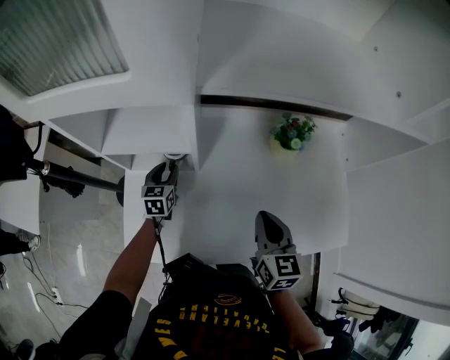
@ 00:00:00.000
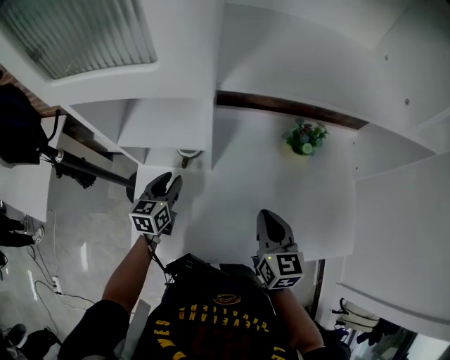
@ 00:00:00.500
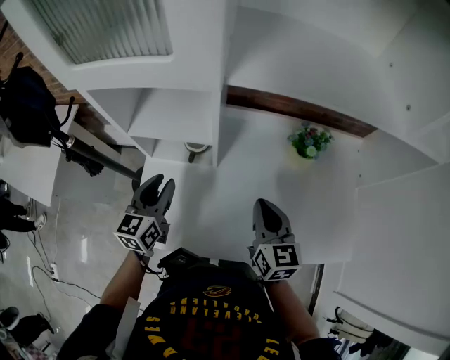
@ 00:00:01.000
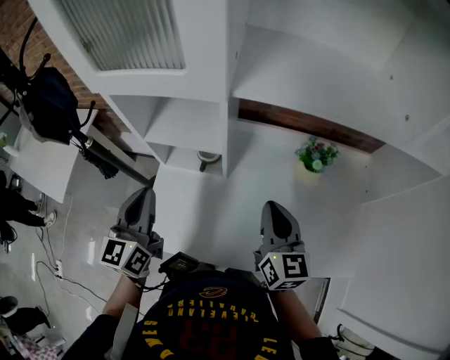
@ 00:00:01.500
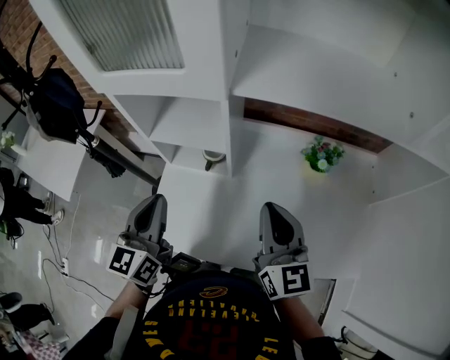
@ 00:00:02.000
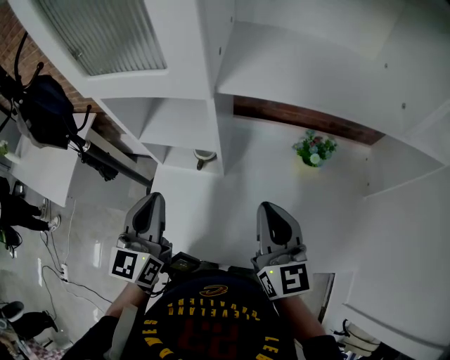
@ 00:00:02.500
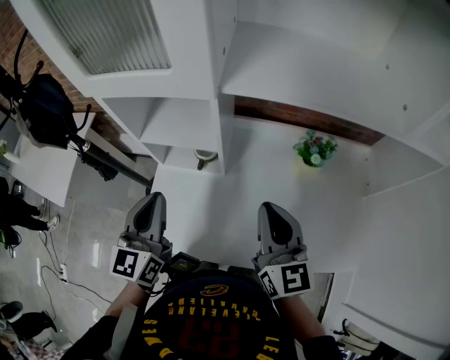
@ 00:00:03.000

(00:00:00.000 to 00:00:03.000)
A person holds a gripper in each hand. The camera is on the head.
00:00:00.000 - 00:00:01.500: The right gripper goes roughly 10 cm upward. Meanwhile the left gripper shifts some 35 cm upward and backward, rotates roughly 30 degrees, and closes.
00:00:01.500 - 00:00:03.000: The right gripper changes place by approximately 5 cm.

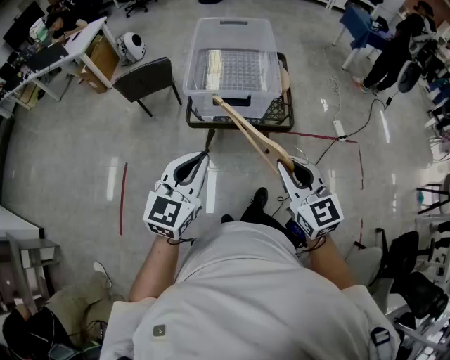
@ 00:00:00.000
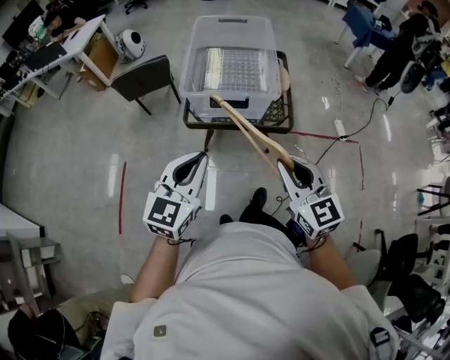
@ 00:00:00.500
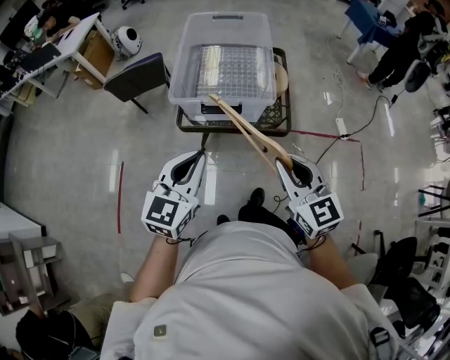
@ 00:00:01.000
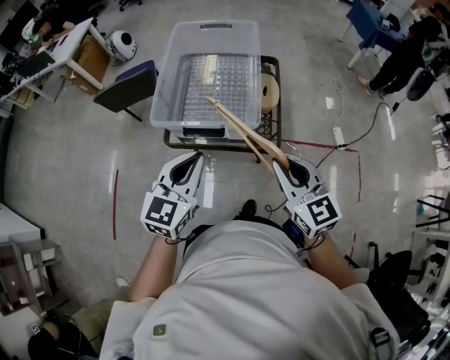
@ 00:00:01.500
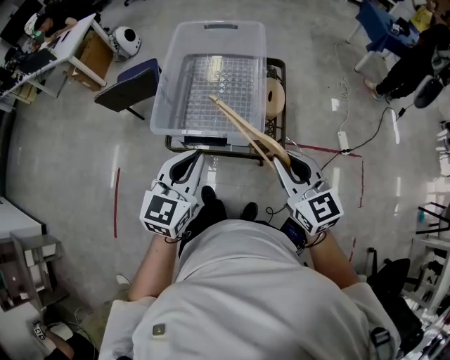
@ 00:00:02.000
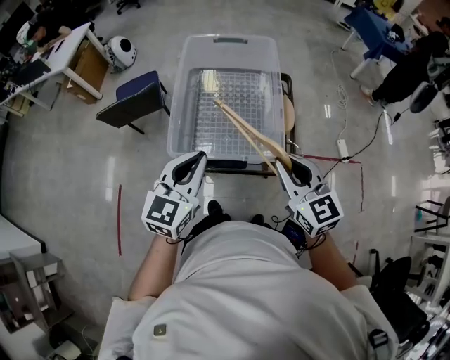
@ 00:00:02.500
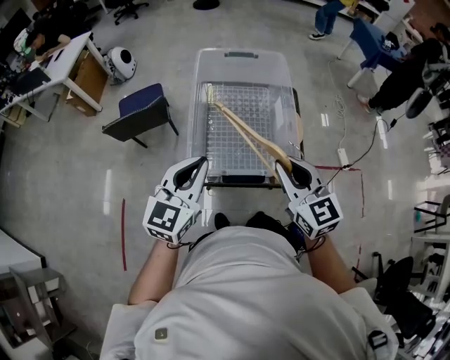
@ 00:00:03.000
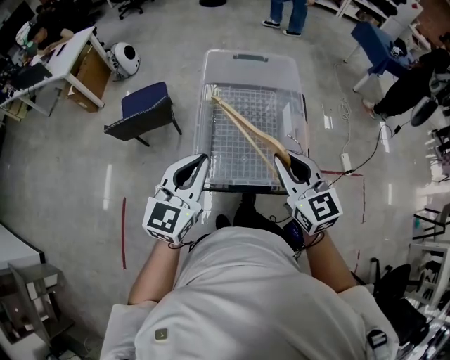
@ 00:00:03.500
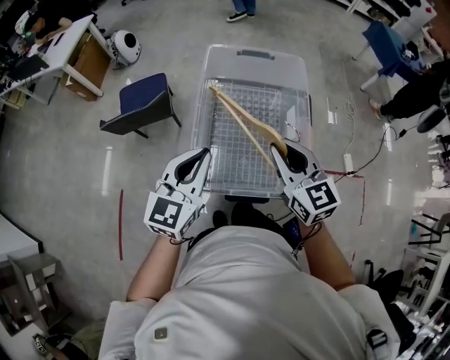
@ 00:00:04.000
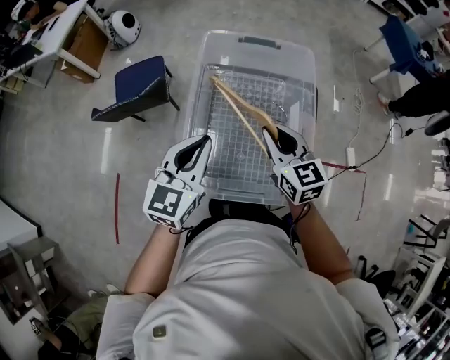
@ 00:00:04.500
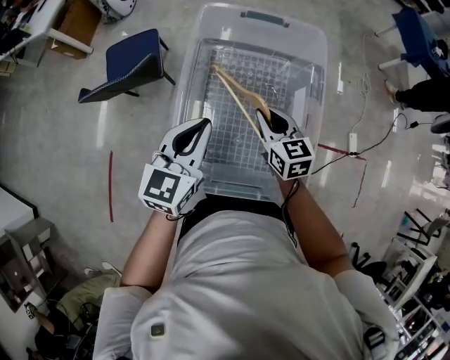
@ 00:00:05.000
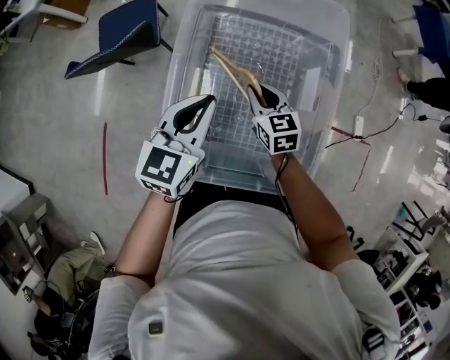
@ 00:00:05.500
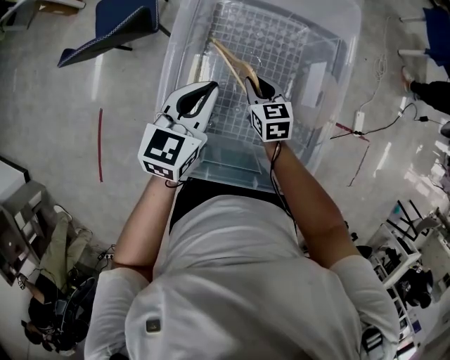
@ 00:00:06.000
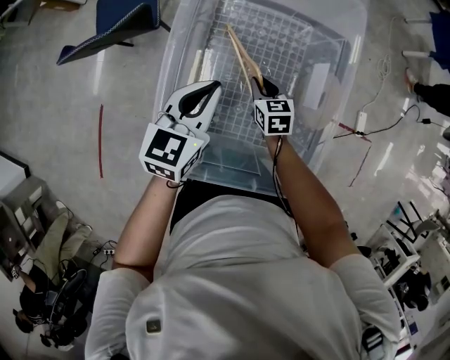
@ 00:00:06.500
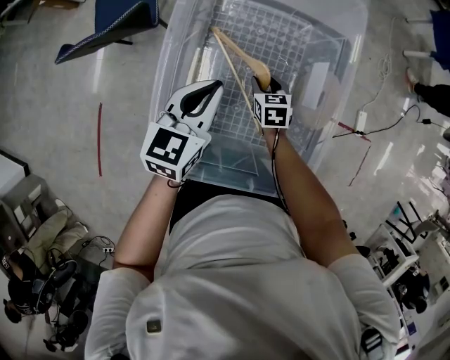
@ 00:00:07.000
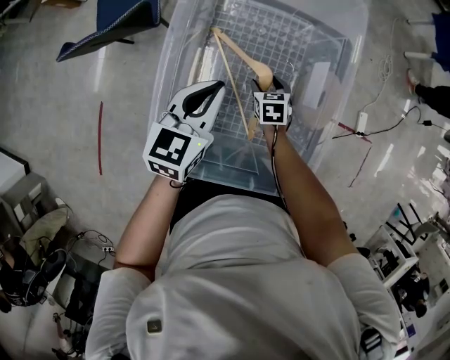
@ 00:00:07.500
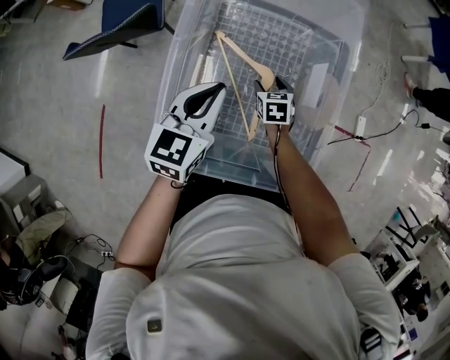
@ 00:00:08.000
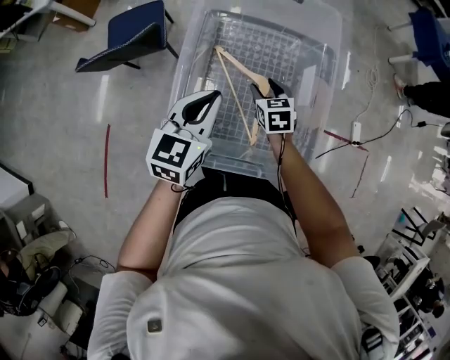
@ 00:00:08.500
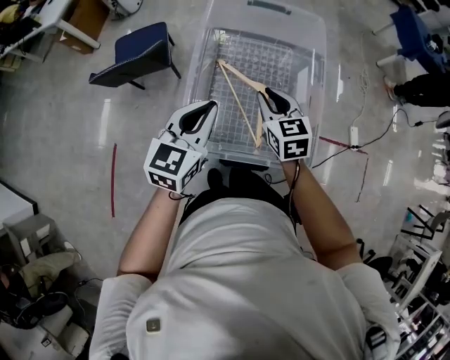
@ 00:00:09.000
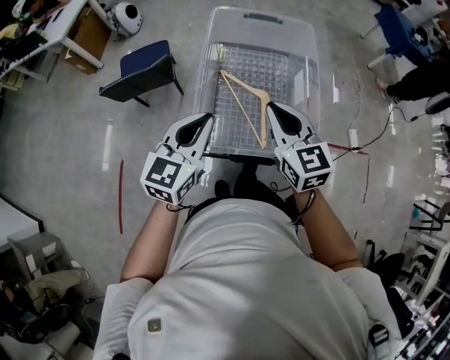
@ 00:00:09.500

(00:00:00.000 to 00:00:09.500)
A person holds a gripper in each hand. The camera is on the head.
00:00:00.000 - 00:00:02.000: The grippers both shift forward and to the right by about 30 cm.
00:00:02.000 - 00:00:04.000: The grippers both shift forward and to the left by approximately 30 cm.
00:00:04.000 - 00:00:05.500: The left gripper heads downward and forward, covering roughly 20 cm. Meanwhile the right gripper goes about 35 cm downward and forward, and changes its angle by approximately 20 degrees.
00:00:05.500 - 00:00:07.500: The right gripper goes approximately 15 cm downward, changes its angle by approximately 20 degrees, and opens, while the left gripper heads downward, covering roughly 5 cm.
00:00:07.500 - 00:00:09.500: The right gripper travels upward and backward by approximately 50 cm, tips its fingers upward by about 40 degrees, and closes; the left gripper heads backward, upward and to the left, covering some 25 cm.

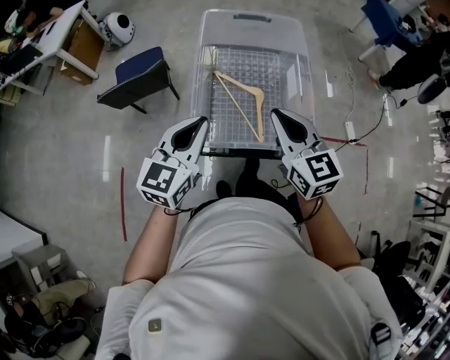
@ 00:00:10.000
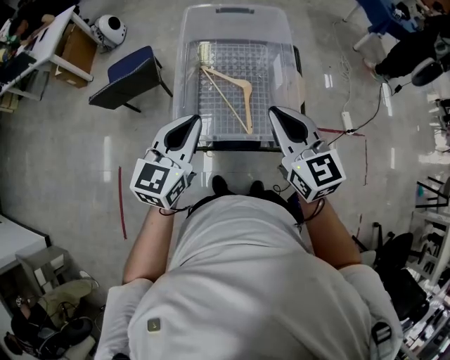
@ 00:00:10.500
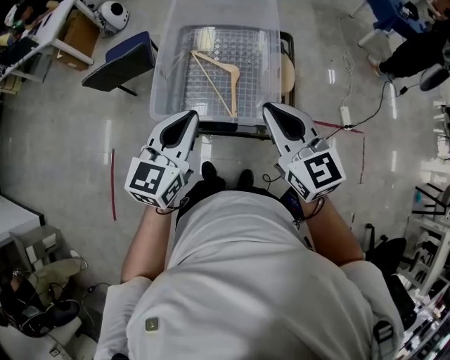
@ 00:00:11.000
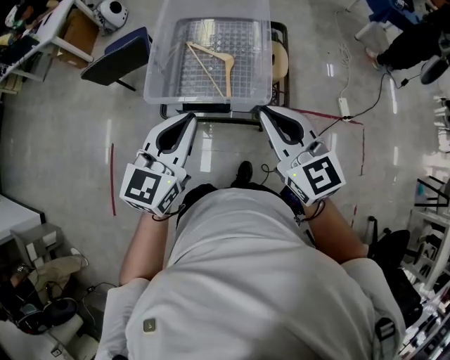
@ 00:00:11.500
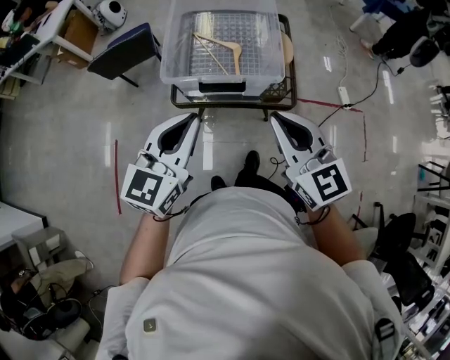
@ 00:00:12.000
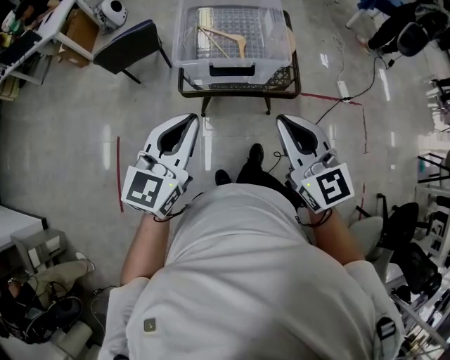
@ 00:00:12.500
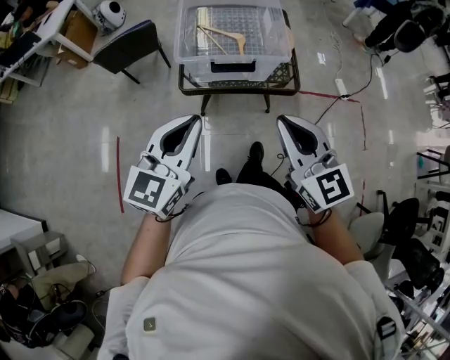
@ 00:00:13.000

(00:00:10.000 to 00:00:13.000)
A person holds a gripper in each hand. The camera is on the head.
00:00:10.000 - 00:00:11.500: The right gripper shifts roughly 20 cm backward and to the right. Meanwhile the left gripper shifts some 20 cm to the right and backward.
00:00:11.500 - 00:00:13.000: The two grippers go some 20 cm backward and to the left.

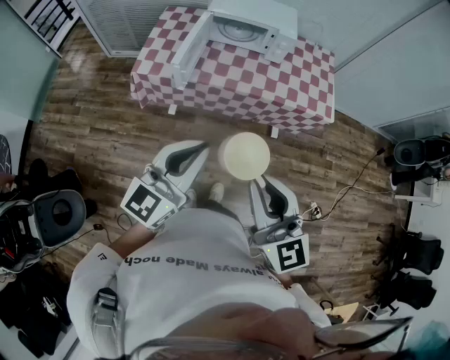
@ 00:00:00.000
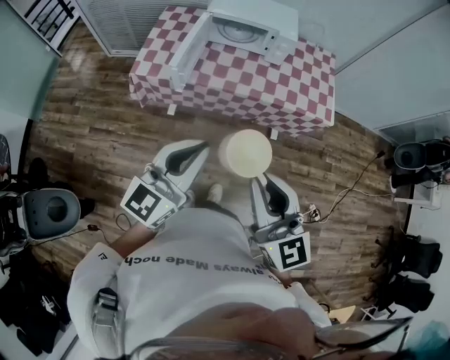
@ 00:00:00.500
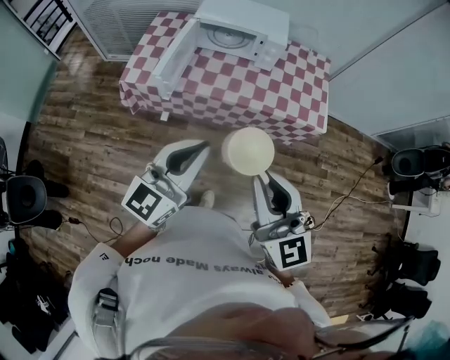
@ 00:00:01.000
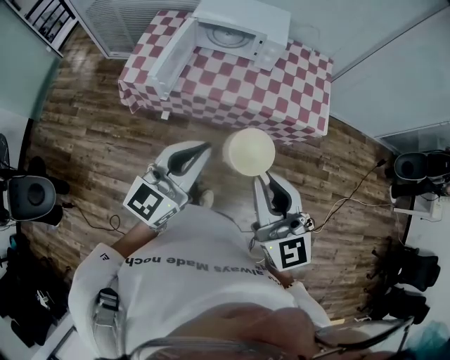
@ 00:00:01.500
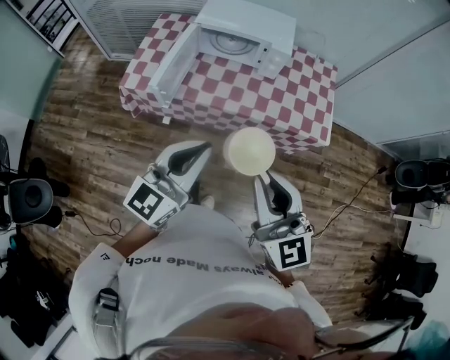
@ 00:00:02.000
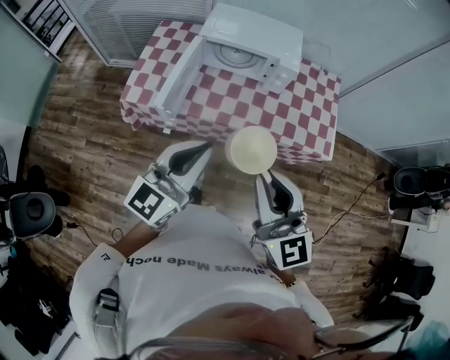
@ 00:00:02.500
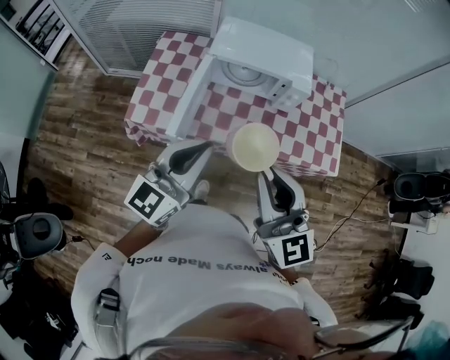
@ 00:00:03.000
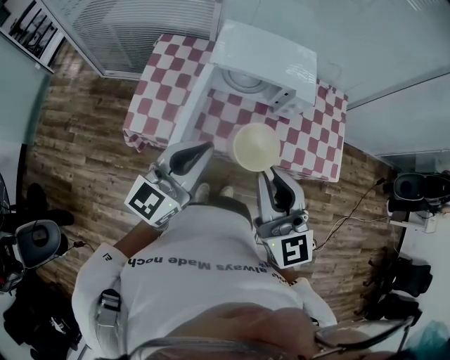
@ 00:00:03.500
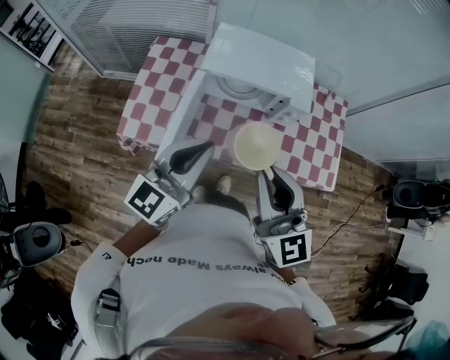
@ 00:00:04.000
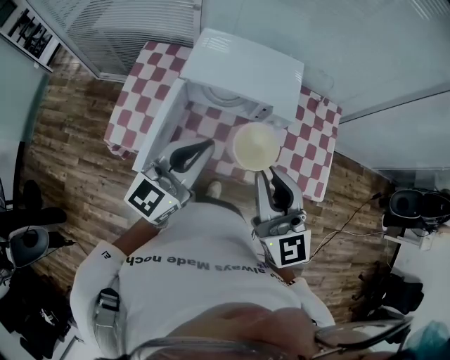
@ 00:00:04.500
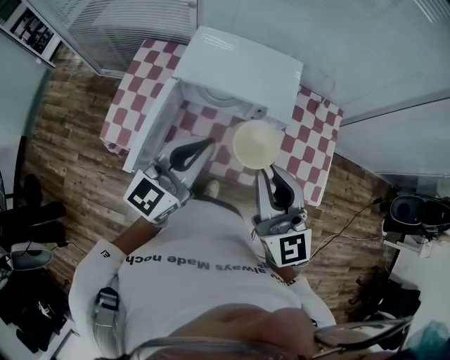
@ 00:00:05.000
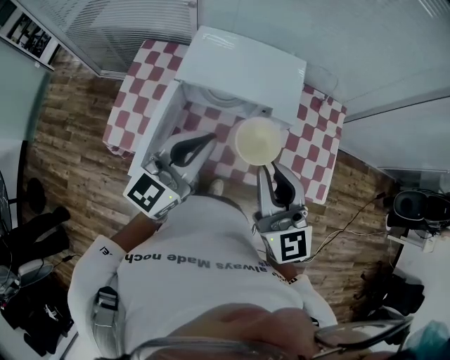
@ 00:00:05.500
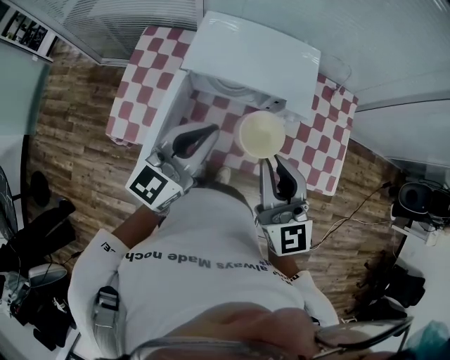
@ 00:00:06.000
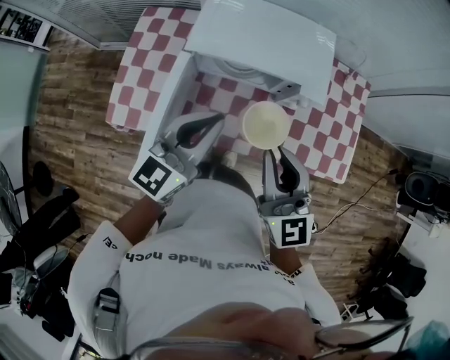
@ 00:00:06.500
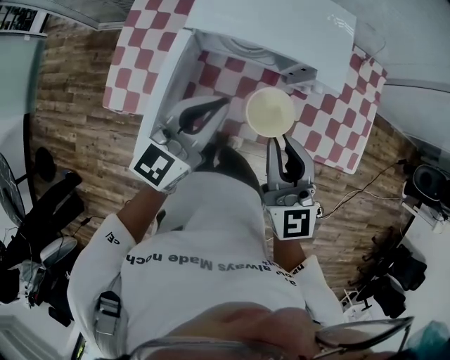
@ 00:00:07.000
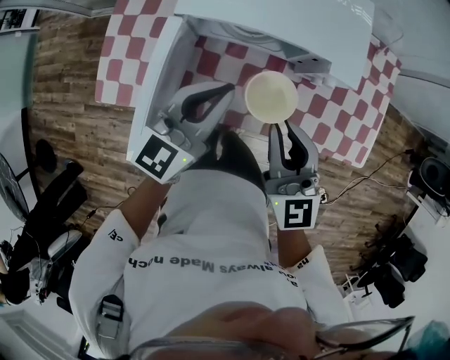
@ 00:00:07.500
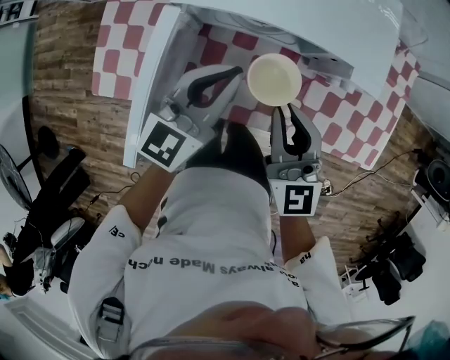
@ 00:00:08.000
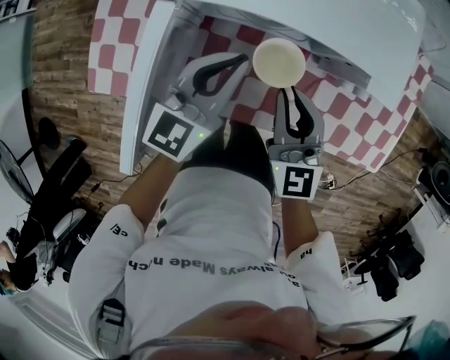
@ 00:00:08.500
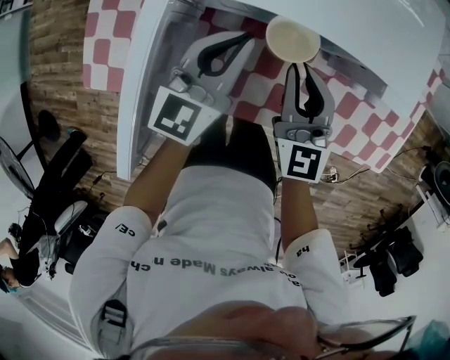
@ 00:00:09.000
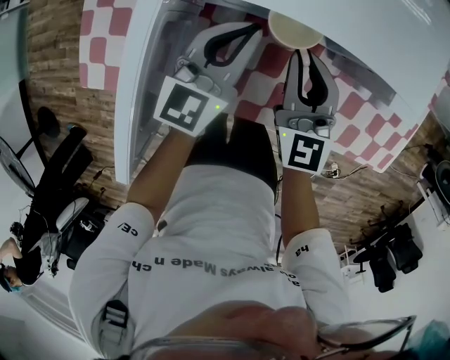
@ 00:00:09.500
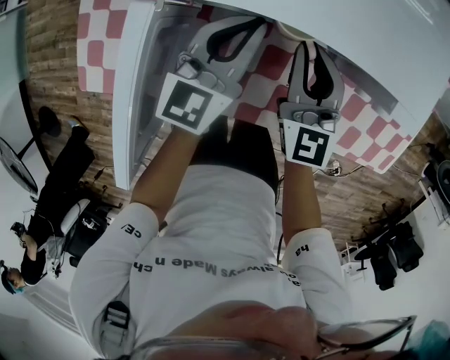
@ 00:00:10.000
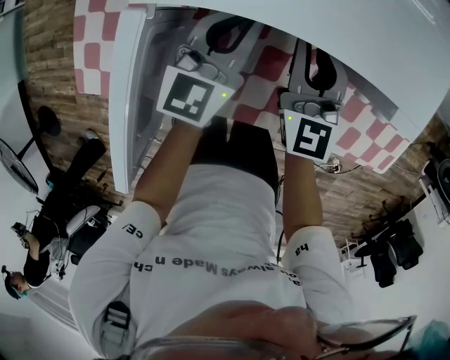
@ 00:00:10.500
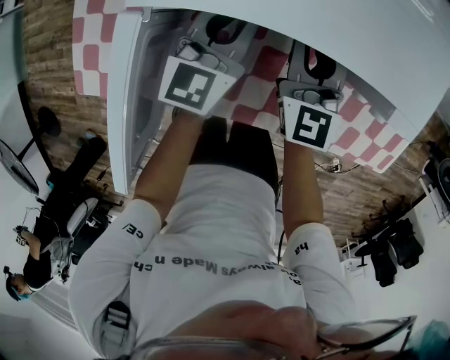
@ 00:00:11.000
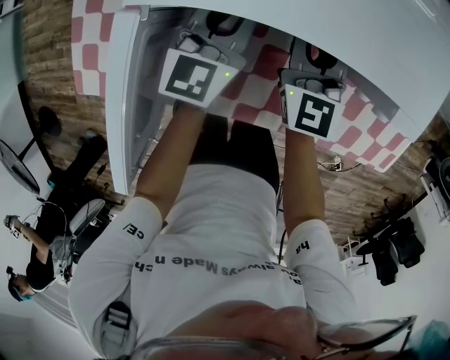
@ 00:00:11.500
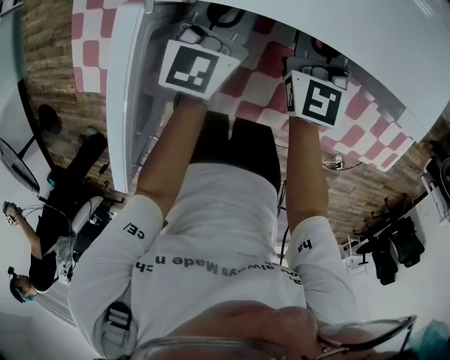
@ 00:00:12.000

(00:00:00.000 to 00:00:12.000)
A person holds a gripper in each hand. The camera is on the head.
00:00:00.000 - 00:00:02.000: Both grippers travel together forward and to the right, about 20 cm.
00:00:02.000 - 00:00:04.000: The two grippers go approximately 30 cm forward and to the left.
00:00:04.000 - 00:00:06.000: The right gripper heads forward, to the right and downward, covering approximately 15 cm; the left gripper shifts approximately 15 cm forward and to the right.
00:00:06.000 - 00:00:08.000: Both grippers travel together downward and forward, about 25 cm.
00:00:08.000 - 00:00:10.000: The two grippers go about 15 cm downward and forward.
00:00:10.000 - 00:00:12.000: Both grippers travel together forward, some 5 cm.
